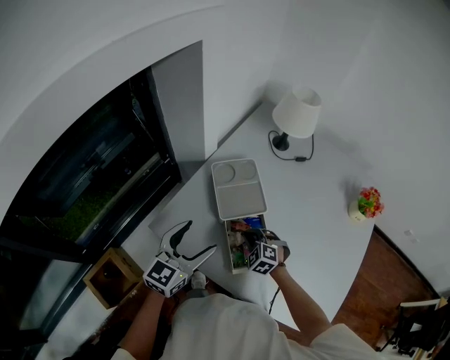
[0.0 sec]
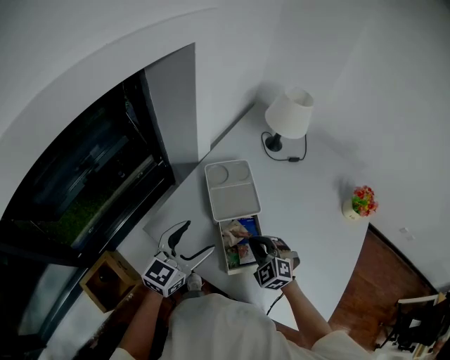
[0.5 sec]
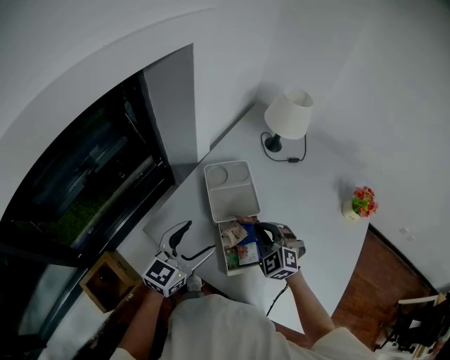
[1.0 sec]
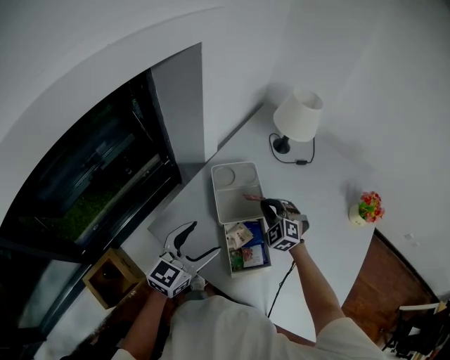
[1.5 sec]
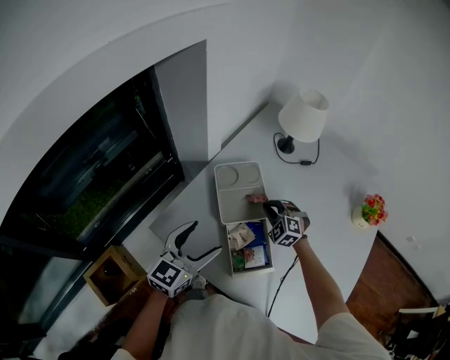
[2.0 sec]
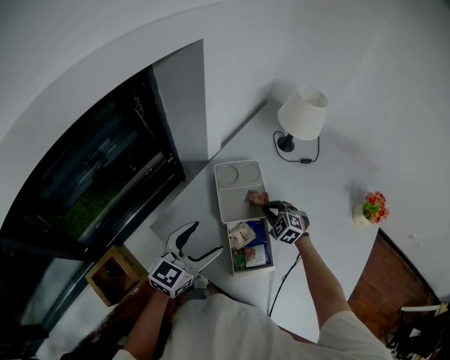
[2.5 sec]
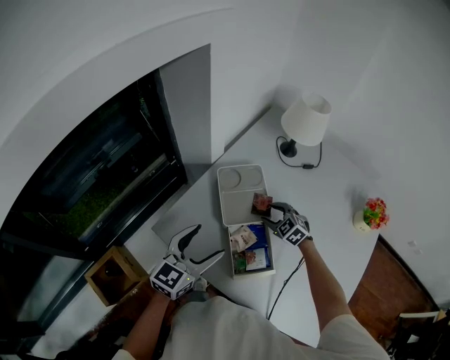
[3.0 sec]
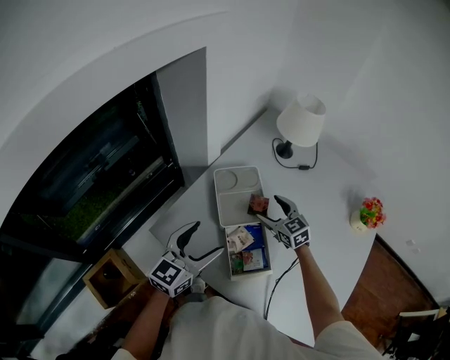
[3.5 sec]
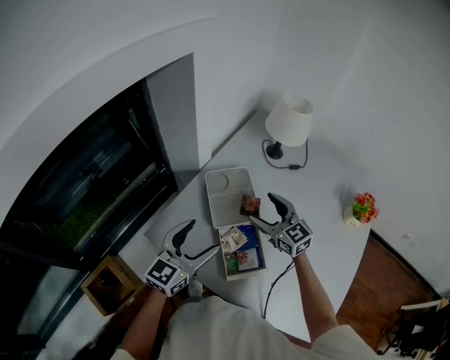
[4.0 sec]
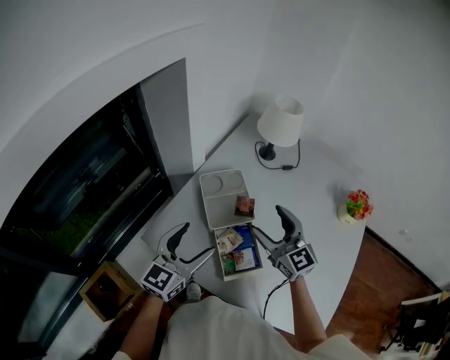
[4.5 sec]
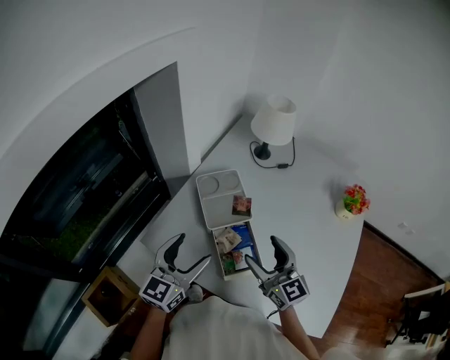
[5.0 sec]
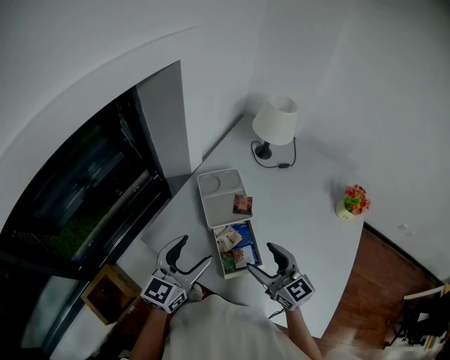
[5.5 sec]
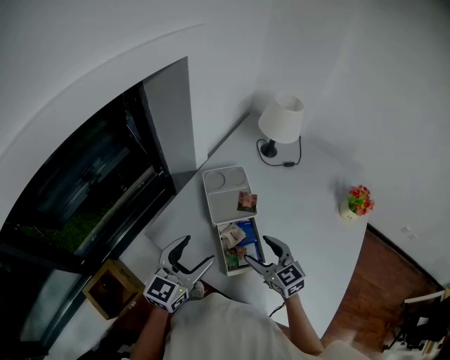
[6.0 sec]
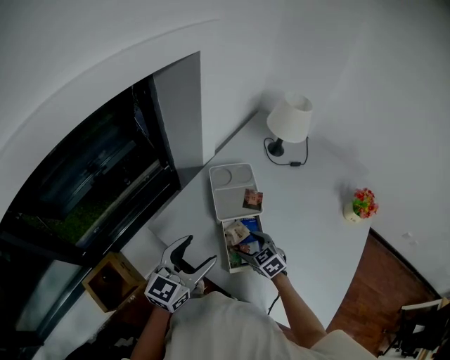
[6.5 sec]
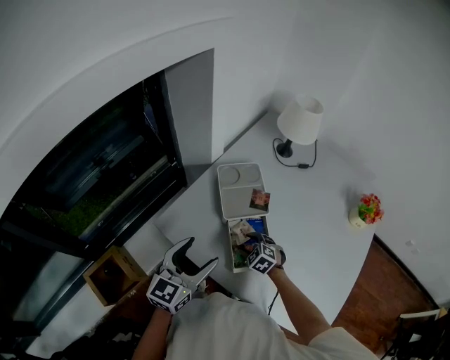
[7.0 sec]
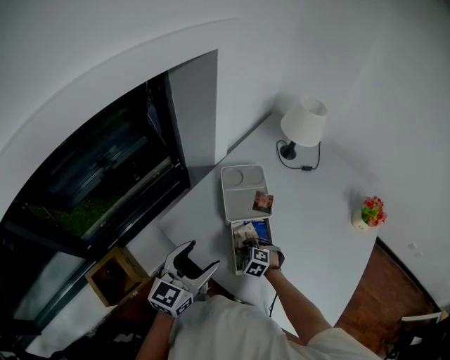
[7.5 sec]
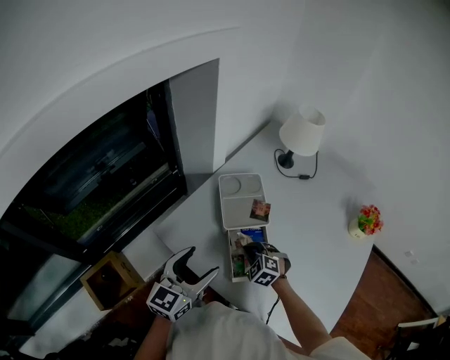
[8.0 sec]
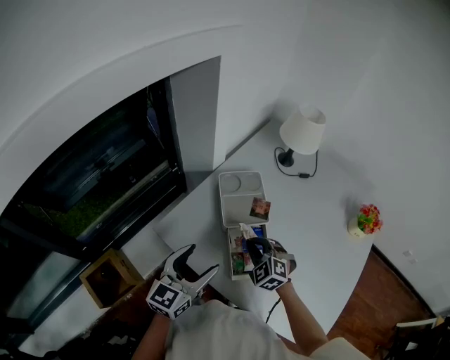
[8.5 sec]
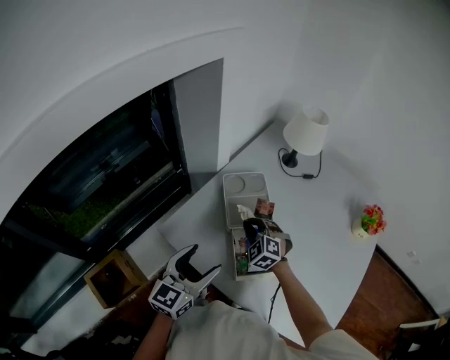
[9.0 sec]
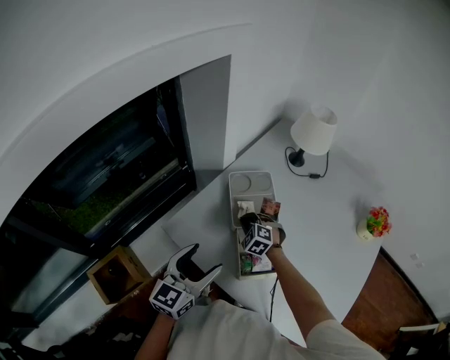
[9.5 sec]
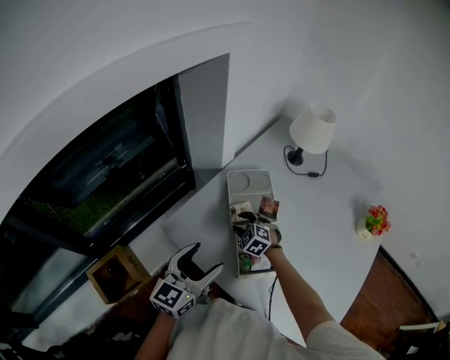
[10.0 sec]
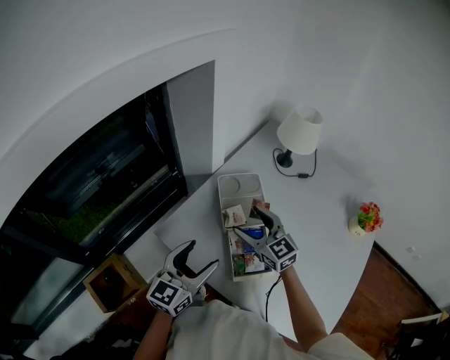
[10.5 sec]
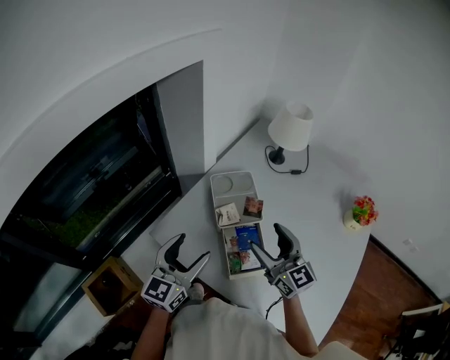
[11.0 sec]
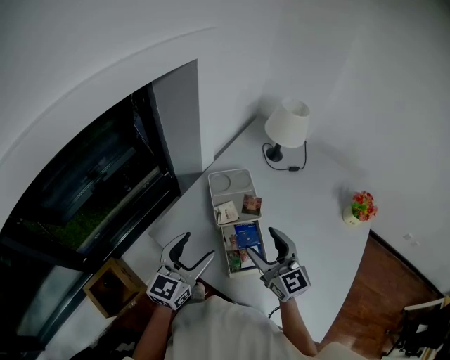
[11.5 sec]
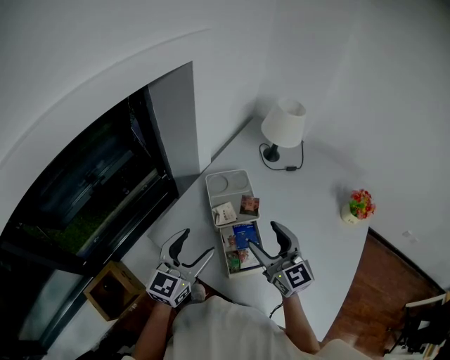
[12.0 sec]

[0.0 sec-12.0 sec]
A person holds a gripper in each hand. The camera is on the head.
0.0 sec to 2.0 sec: The right gripper is displaced forward by approximately 15 cm.
2.0 sec to 4.0 sec: The right gripper travels upward by approximately 15 cm, points its fingers some 30 degrees further upward, and opens its fingers.
4.0 sec to 6.0 sec: The left gripper goes roughly 5 cm backward. The right gripper goes roughly 15 cm backward.
6.0 sec to 8.0 sec: The right gripper heads downward, covering approximately 15 cm, tips its fingers downward by some 30 degrees, and closes up.
8.0 sec to 10.0 sec: The right gripper is displaced forward and to the left by some 10 cm.
10.0 sec to 12.0 sec: The right gripper moves upward, backward and to the right, roughly 30 cm, tips its fingers upward by approximately 50 degrees, and opens up.

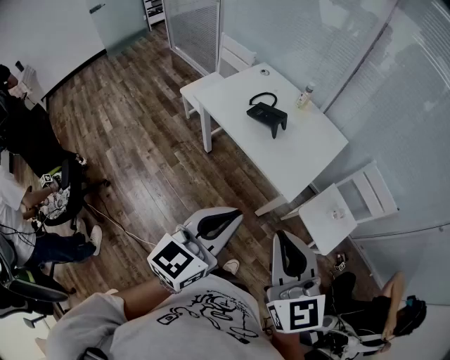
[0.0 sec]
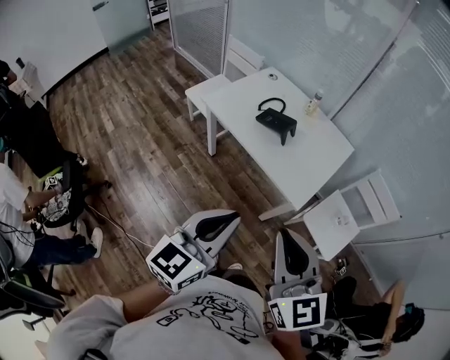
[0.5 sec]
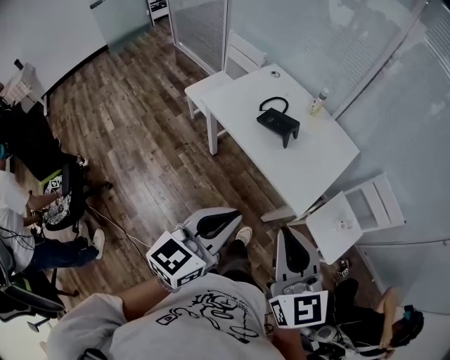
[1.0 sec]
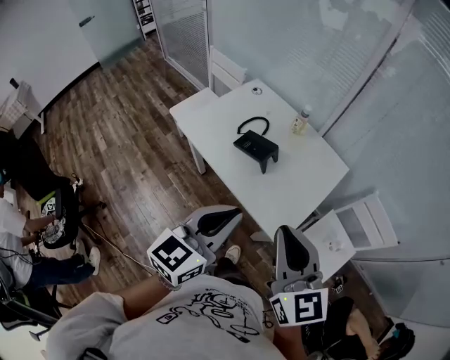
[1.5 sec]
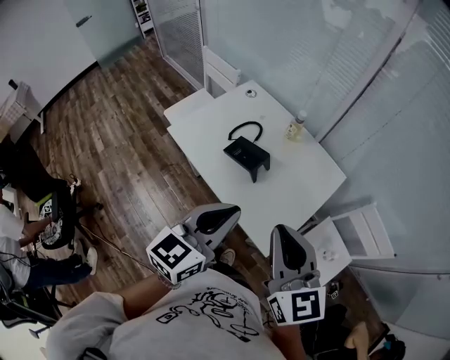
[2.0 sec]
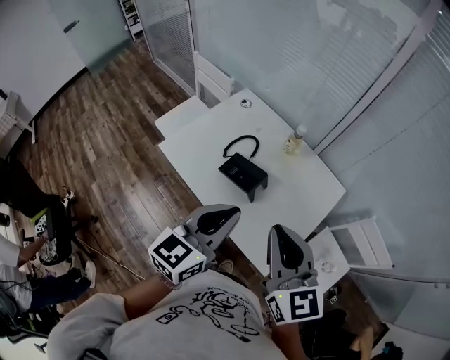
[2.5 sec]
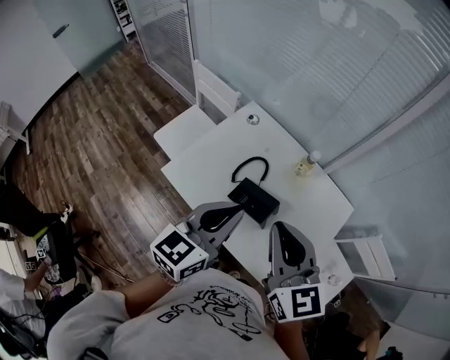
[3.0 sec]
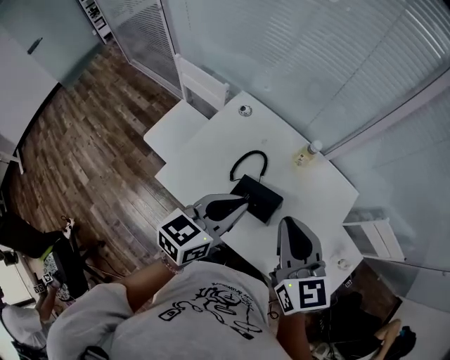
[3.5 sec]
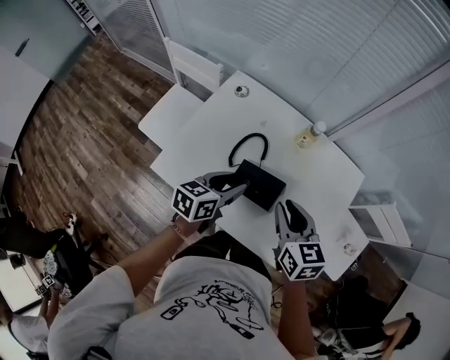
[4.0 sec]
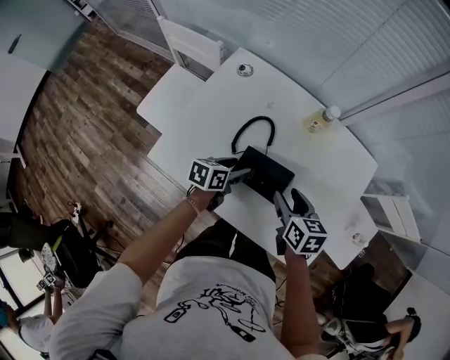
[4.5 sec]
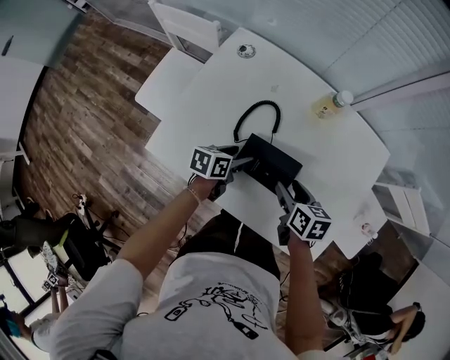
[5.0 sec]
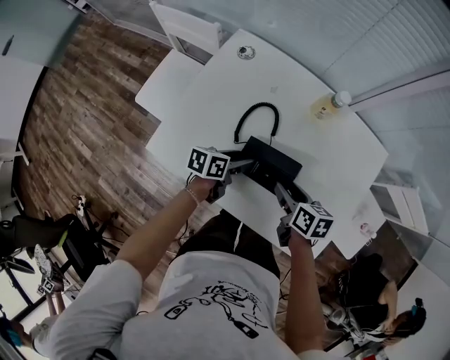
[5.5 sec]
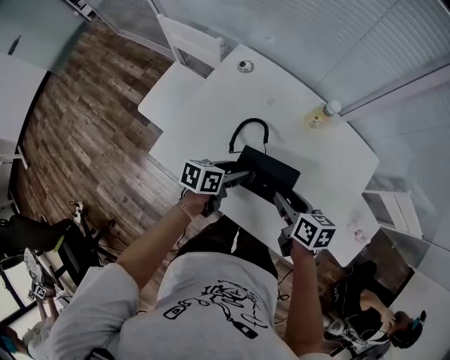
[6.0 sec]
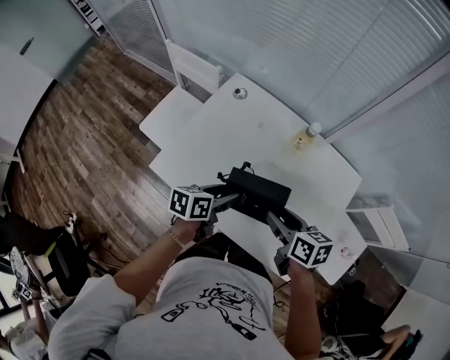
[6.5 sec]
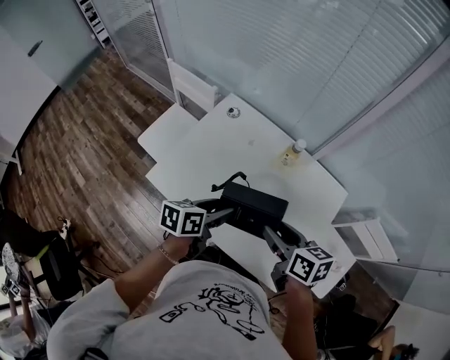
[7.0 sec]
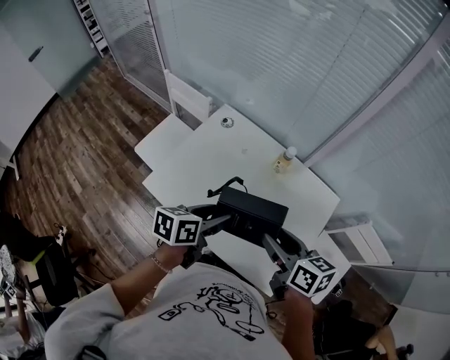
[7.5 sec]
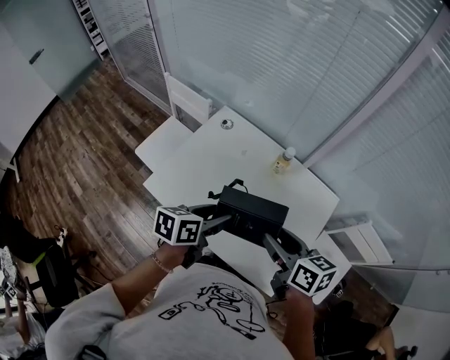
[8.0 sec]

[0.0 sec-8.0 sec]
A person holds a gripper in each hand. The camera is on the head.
0.0 sec to 2.0 sec: The two grippers go about 30 cm forward.
2.0 sec to 4.0 sec: The grippers both shift forward, downward and to the left by approximately 35 cm. The left gripper swivels approximately 30 degrees, and opens up, while the right gripper rotates some 30 degrees.
4.0 sec to 6.0 sec: Both grippers travel together downward, about 15 cm. The right gripper turns by about 30 degrees, and opens.
6.0 sec to 8.0 sec: The grippers both shift upward by roughly 20 cm.

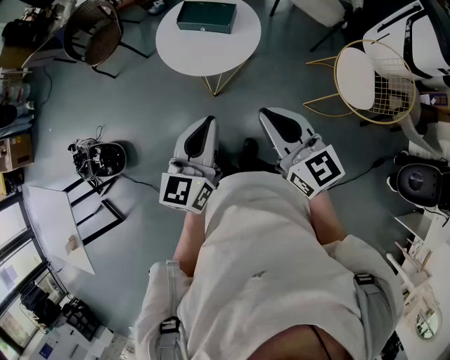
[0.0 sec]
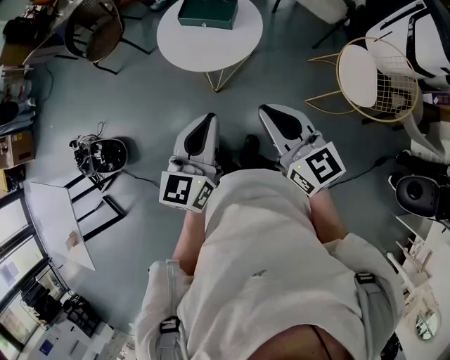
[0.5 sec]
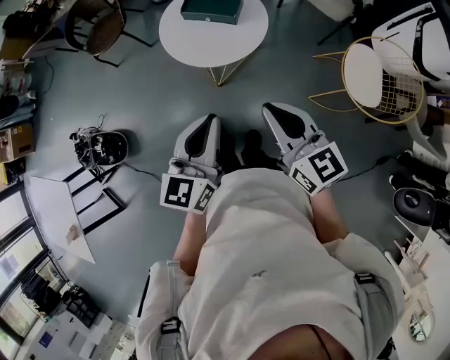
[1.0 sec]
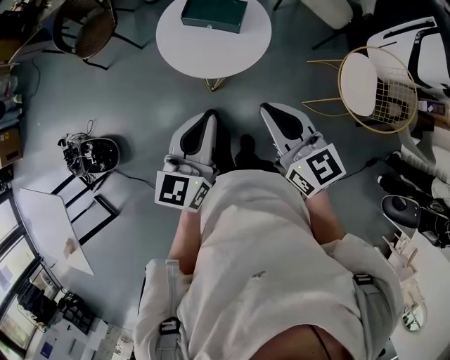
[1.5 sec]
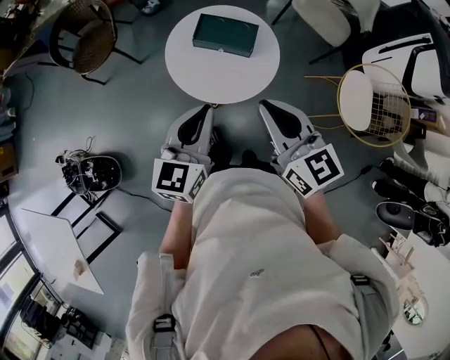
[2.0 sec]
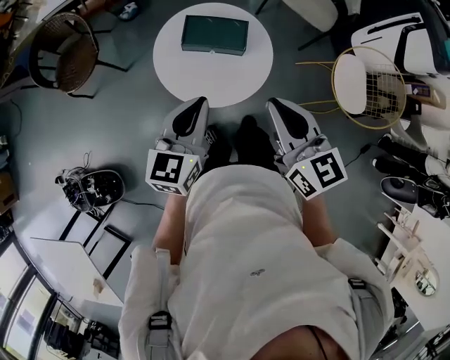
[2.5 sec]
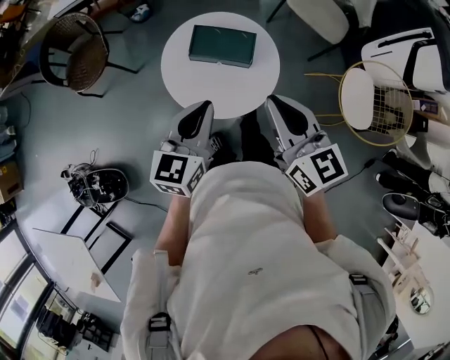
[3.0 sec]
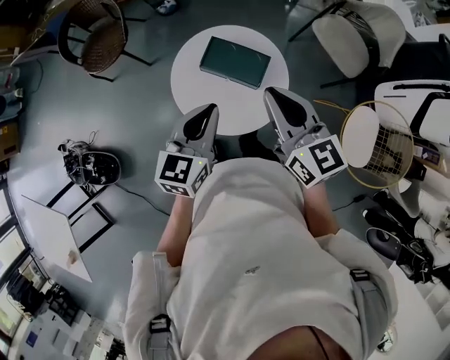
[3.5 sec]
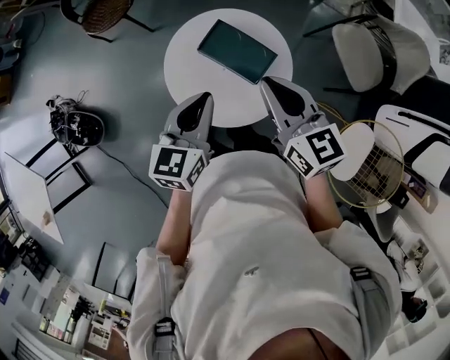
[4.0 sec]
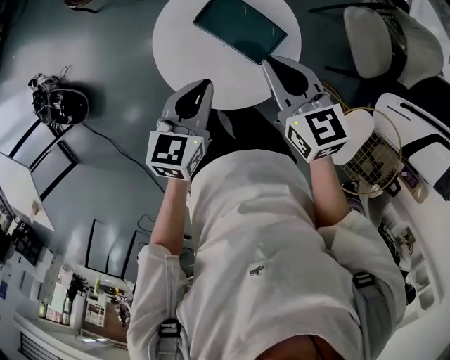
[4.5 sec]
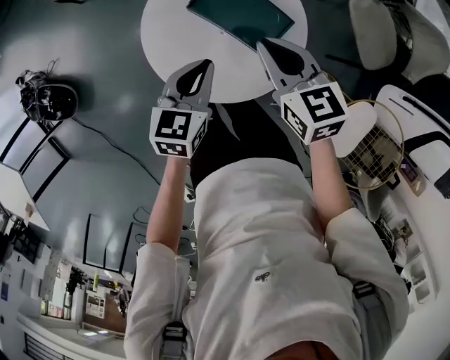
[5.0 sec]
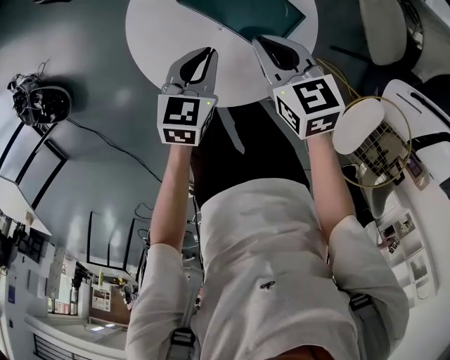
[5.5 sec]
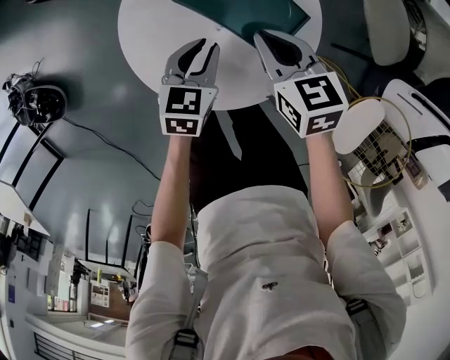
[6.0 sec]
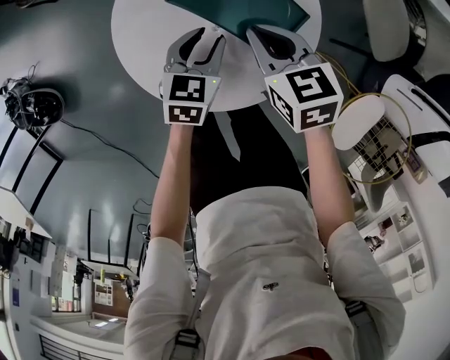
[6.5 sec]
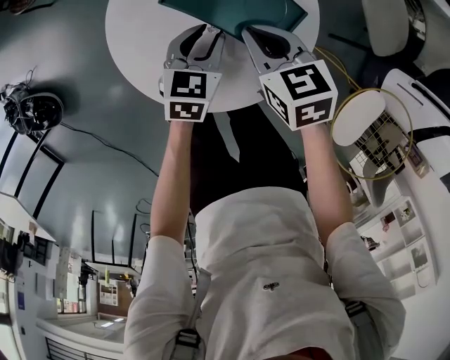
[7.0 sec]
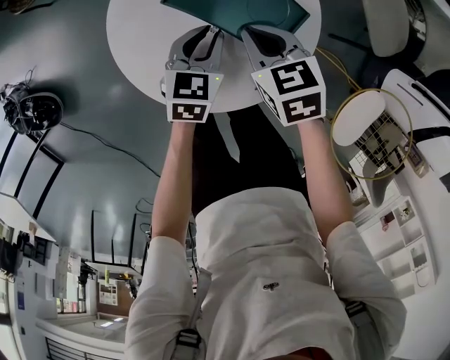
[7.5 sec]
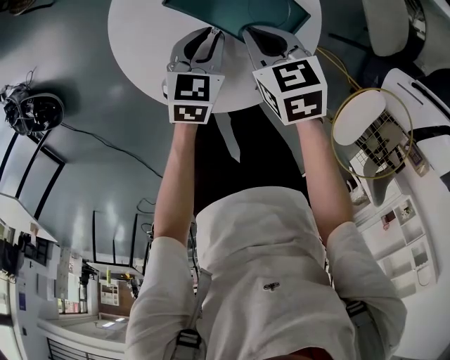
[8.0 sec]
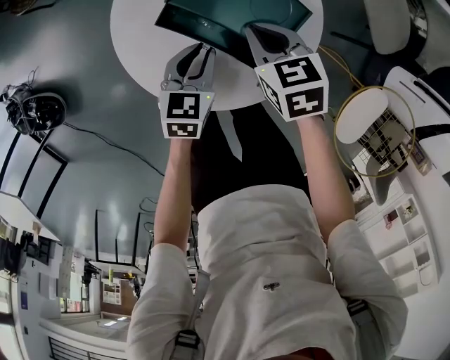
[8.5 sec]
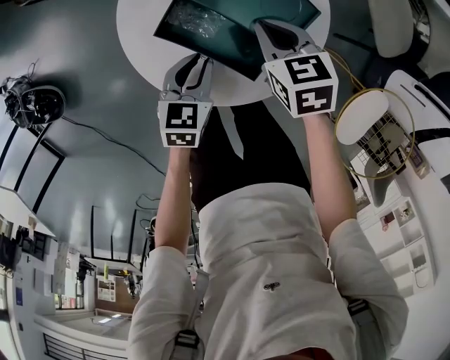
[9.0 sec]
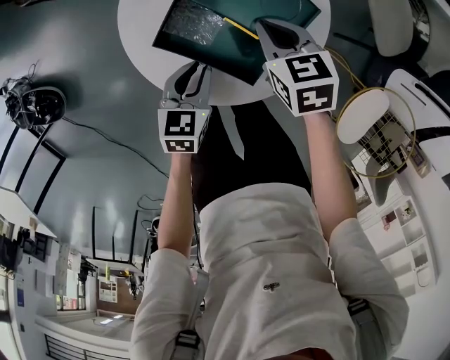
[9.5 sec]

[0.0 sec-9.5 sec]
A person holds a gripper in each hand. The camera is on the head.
0.0 sec to 2.0 sec: The two grippers go about 25 cm forward and to the left.
2.0 sec to 4.0 sec: The right gripper ends up about 25 cm from where it was, while the left gripper changes place by approximately 20 cm, and changes its angle by some 20 degrees.
4.0 sec to 5.5 sec: Both grippers travel together downward, roughly 25 cm. The right gripper changes its angle by approximately 20 degrees.
5.5 sec to 7.5 sec: Both grippers move downward, about 5 cm.
7.5 sec to 9.5 sec: The left gripper moves backward and to the left, about 10 cm.
